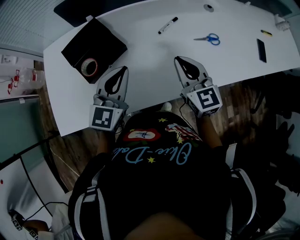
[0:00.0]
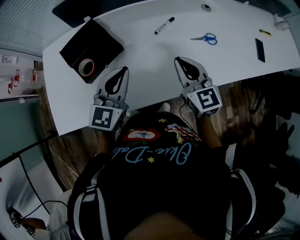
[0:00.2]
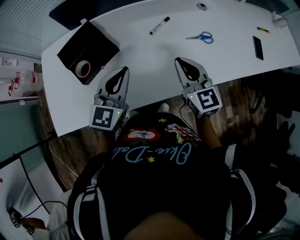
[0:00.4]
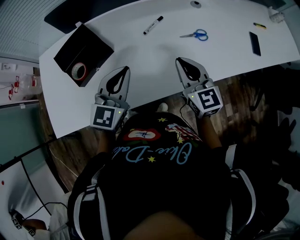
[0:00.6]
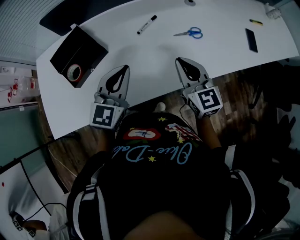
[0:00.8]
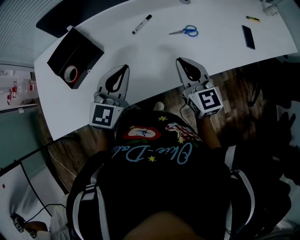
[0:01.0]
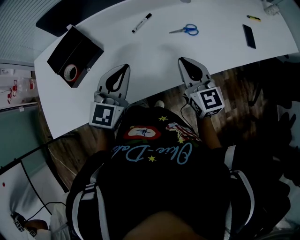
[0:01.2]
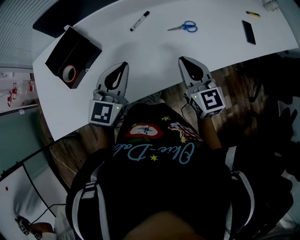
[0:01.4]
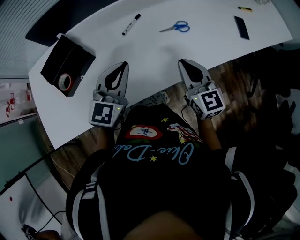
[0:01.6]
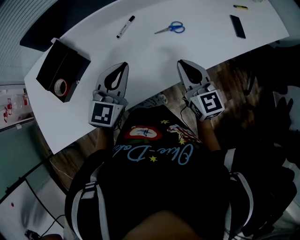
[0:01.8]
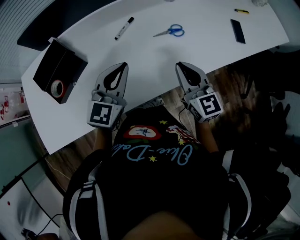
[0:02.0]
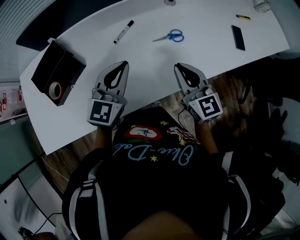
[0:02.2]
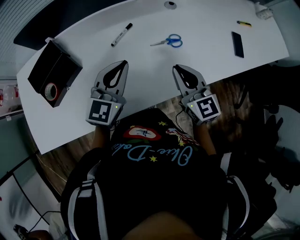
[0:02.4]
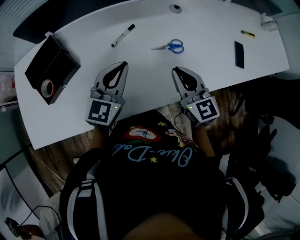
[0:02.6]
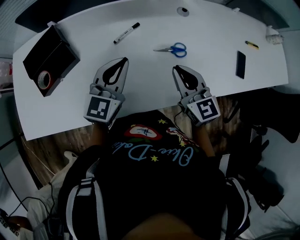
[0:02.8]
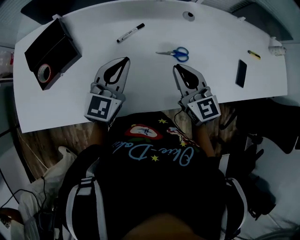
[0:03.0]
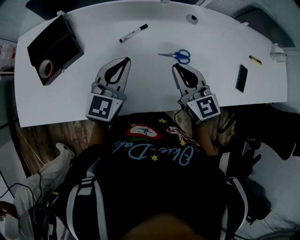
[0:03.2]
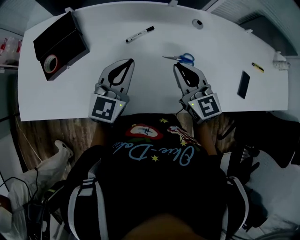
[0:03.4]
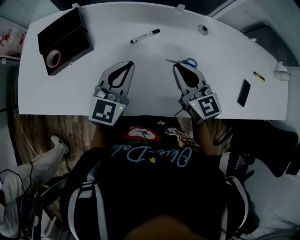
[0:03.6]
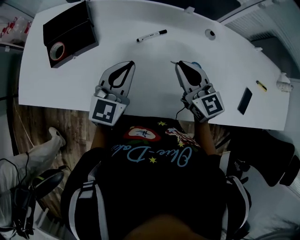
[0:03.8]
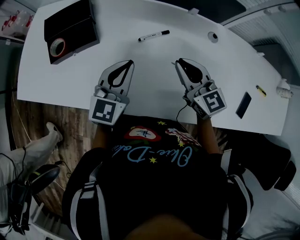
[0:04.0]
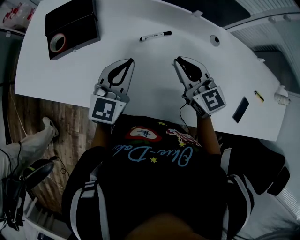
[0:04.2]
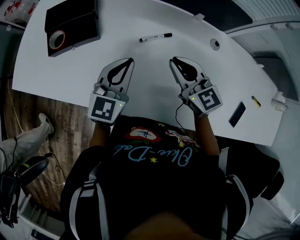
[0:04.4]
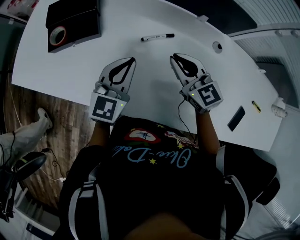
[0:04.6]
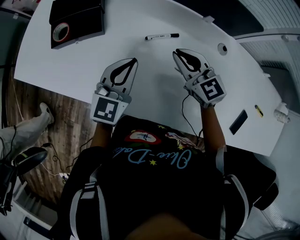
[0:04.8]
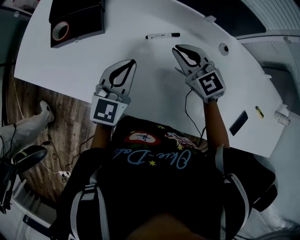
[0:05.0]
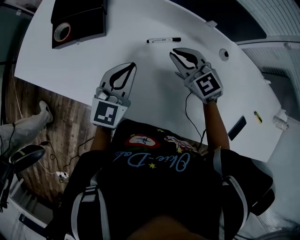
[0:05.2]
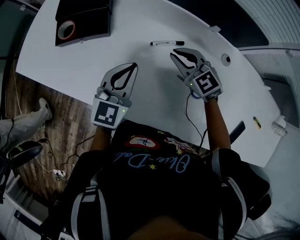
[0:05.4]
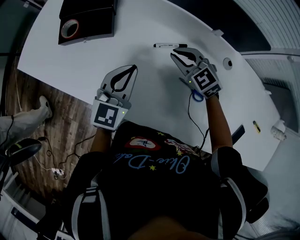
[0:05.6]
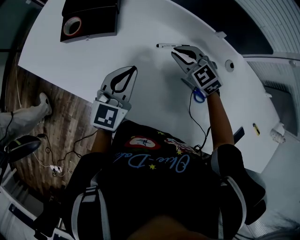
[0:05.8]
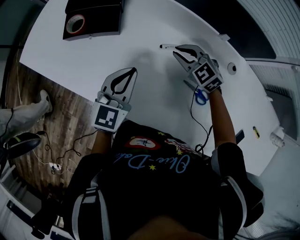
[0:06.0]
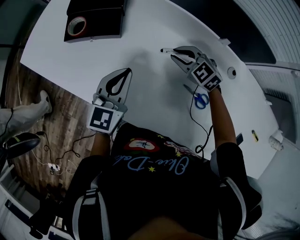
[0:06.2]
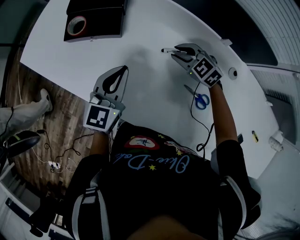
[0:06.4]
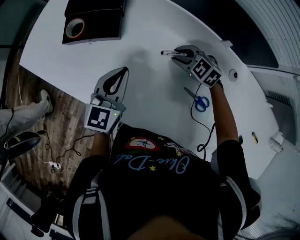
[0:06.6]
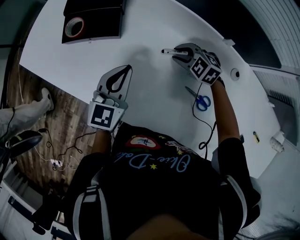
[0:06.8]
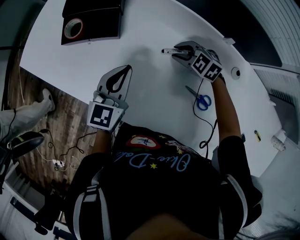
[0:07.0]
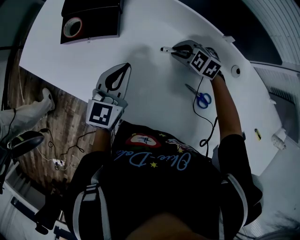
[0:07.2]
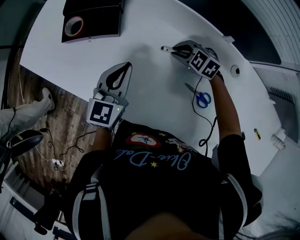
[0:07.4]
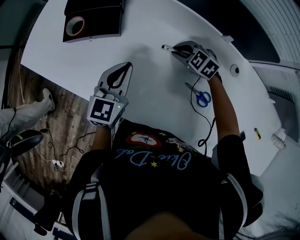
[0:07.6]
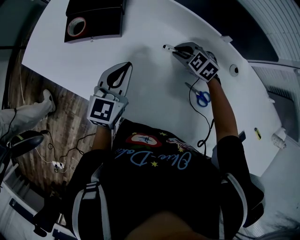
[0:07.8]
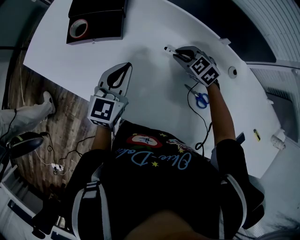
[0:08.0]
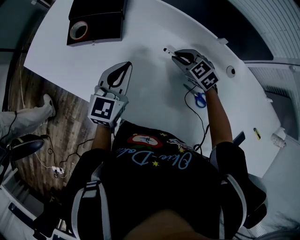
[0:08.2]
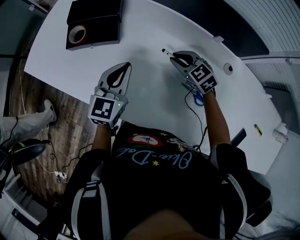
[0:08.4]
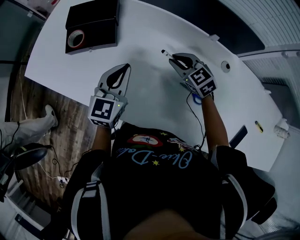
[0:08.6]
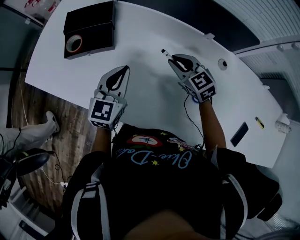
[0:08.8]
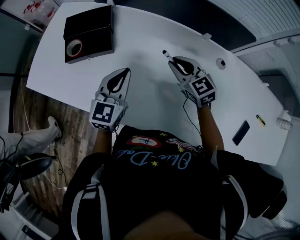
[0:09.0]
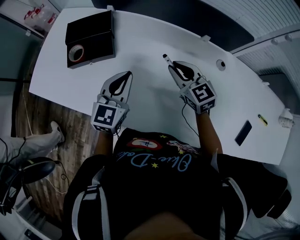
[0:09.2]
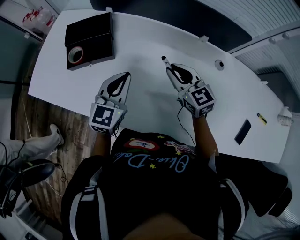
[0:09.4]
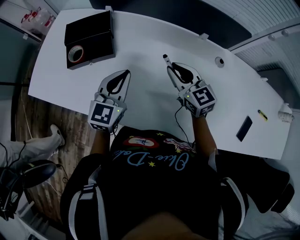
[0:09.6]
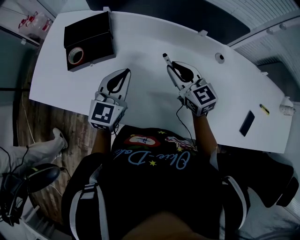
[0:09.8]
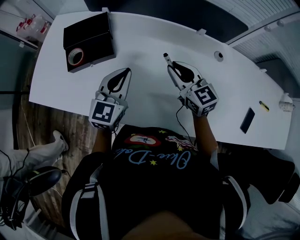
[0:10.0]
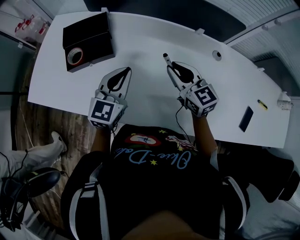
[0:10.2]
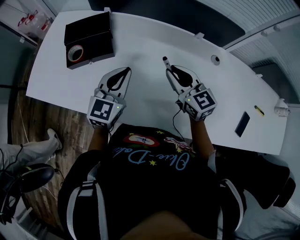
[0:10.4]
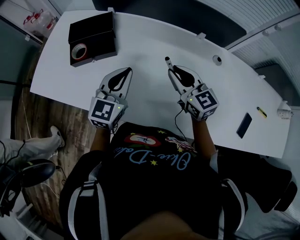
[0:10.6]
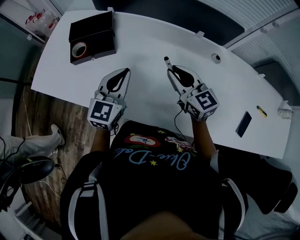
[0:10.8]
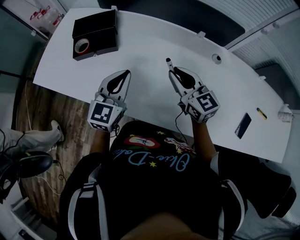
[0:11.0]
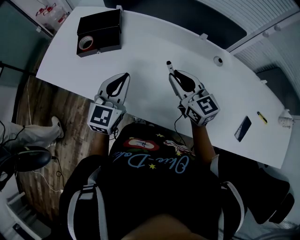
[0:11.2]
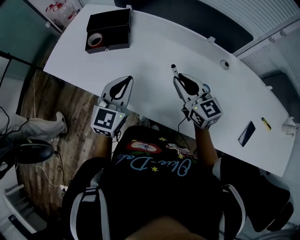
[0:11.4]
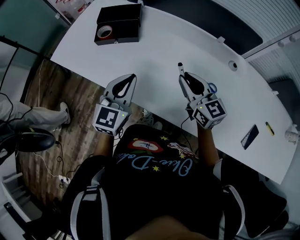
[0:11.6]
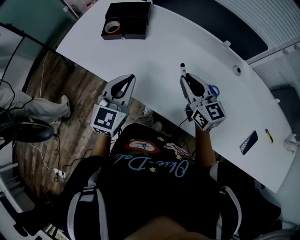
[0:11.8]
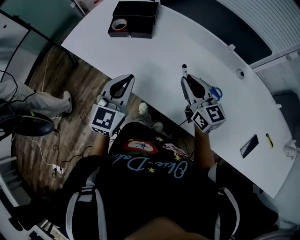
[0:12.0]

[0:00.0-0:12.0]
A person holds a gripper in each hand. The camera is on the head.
0:00.0 to 0:01.6: Both grippers move to the right, roughly 15 cm.
0:01.6 to 0:03.0: Both grippers travel together forward, some 10 cm. The right gripper rotates approximately 20 degrees.
0:03.0 to 0:04.4: The right gripper changes place by approximately 10 cm, and swivels roughly 30 degrees. The left gripper rotates about 20 degrees.
0:04.4 to 0:06.0: The right gripper is displaced downward and forward by roughly 15 cm, and changes its angle by some 40 degrees.
0:06.0 to 0:07.6: The right gripper heads downward, covering roughly 5 cm.
0:07.6 to 0:09.0: The right gripper shifts approximately 15 cm upward, and turns by roughly 40 degrees.
0:09.0 to 0:10.4: The right gripper goes roughly 10 cm backward and upward.
0:10.4 to 0:12.0: The left gripper moves backward and to the left, approximately 15 cm. The right gripper moves backward, approximately 10 cm.

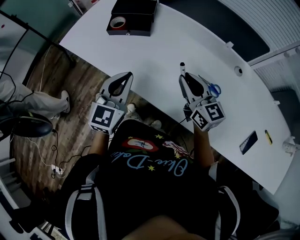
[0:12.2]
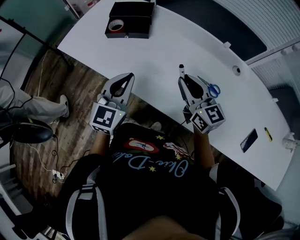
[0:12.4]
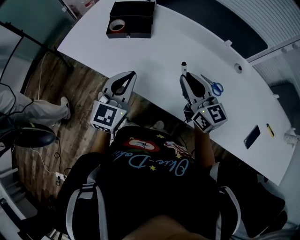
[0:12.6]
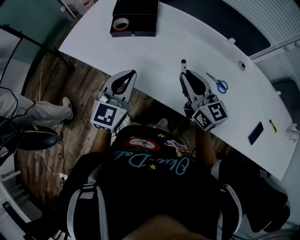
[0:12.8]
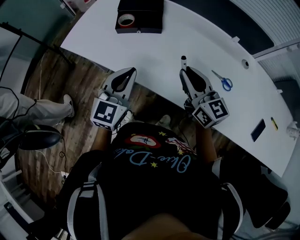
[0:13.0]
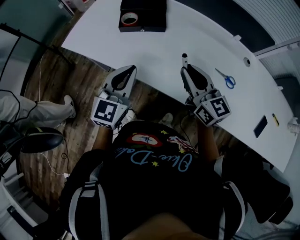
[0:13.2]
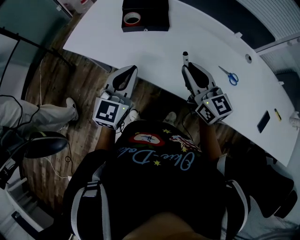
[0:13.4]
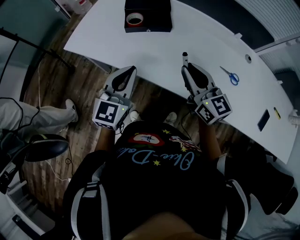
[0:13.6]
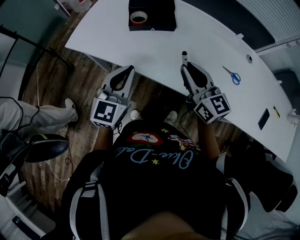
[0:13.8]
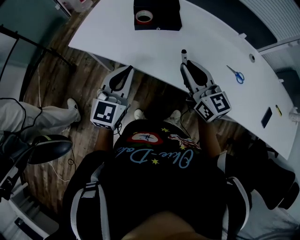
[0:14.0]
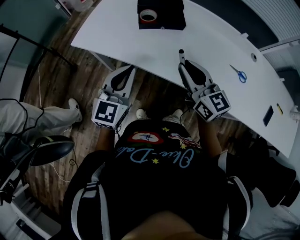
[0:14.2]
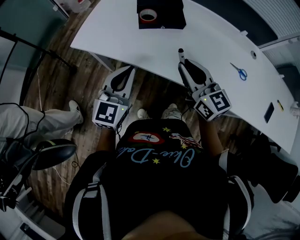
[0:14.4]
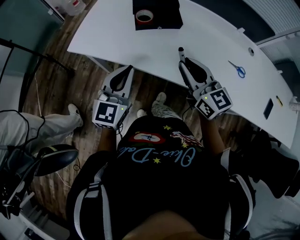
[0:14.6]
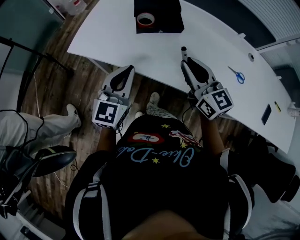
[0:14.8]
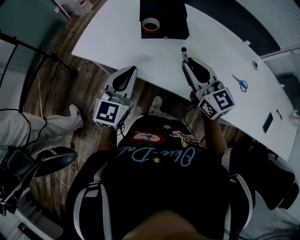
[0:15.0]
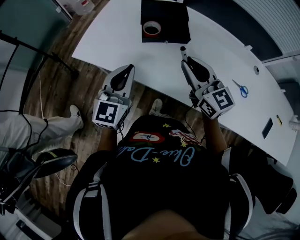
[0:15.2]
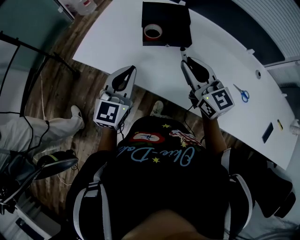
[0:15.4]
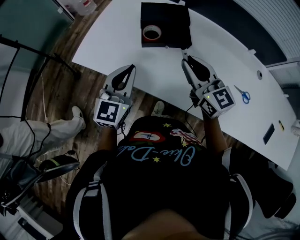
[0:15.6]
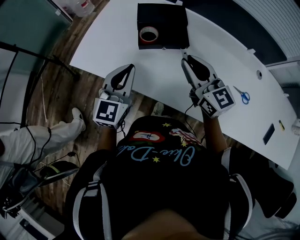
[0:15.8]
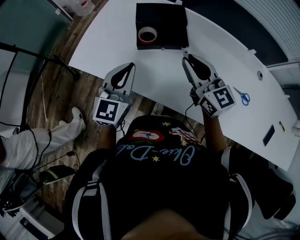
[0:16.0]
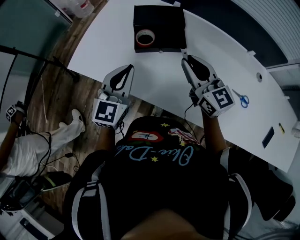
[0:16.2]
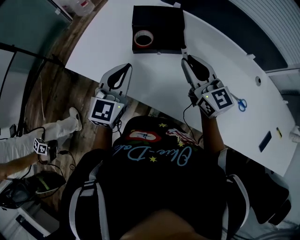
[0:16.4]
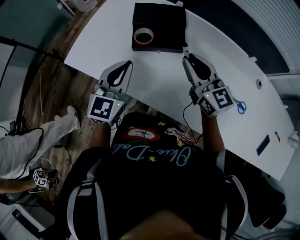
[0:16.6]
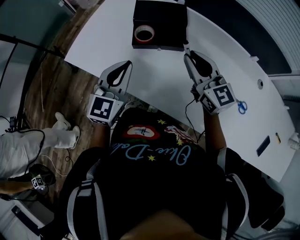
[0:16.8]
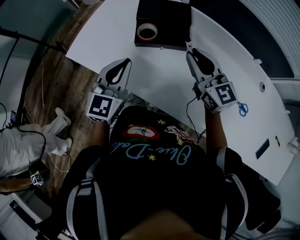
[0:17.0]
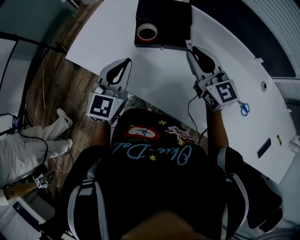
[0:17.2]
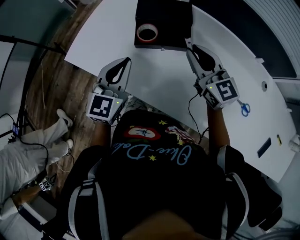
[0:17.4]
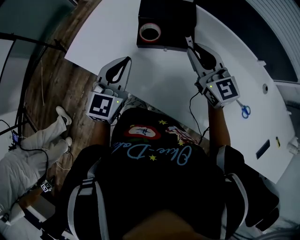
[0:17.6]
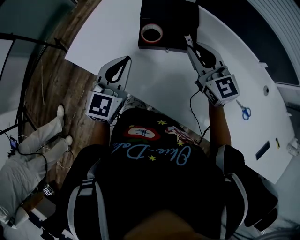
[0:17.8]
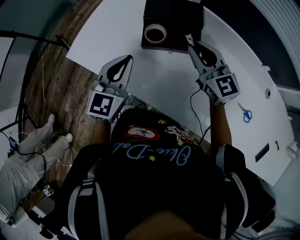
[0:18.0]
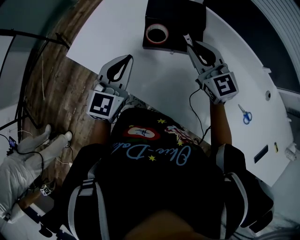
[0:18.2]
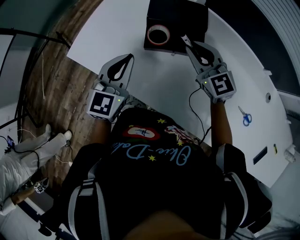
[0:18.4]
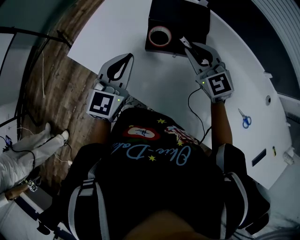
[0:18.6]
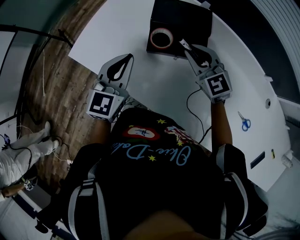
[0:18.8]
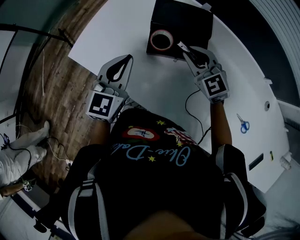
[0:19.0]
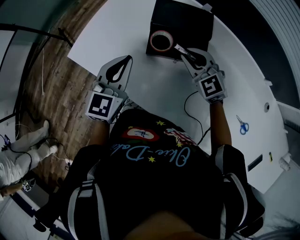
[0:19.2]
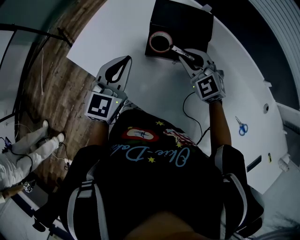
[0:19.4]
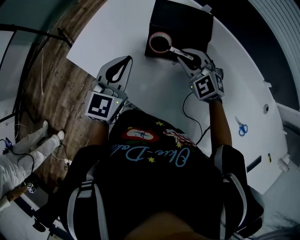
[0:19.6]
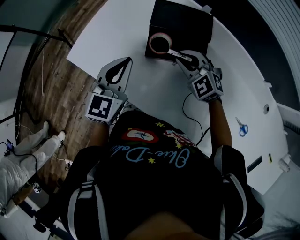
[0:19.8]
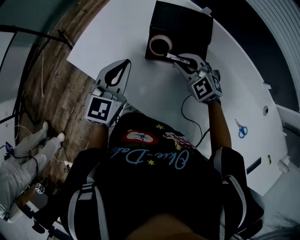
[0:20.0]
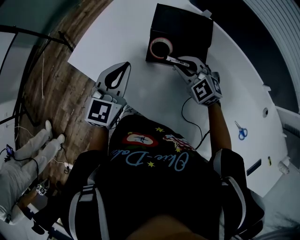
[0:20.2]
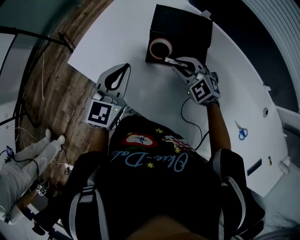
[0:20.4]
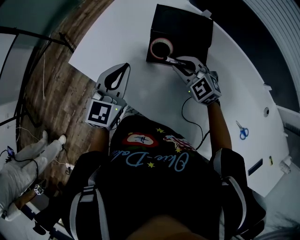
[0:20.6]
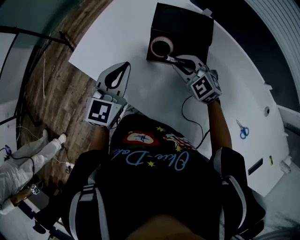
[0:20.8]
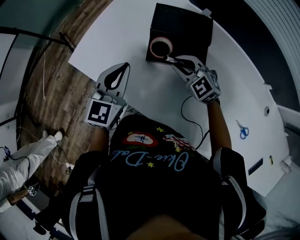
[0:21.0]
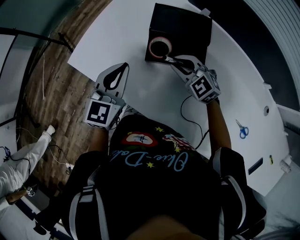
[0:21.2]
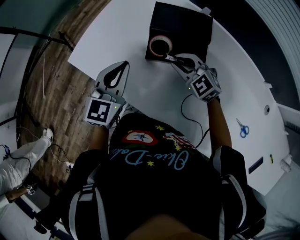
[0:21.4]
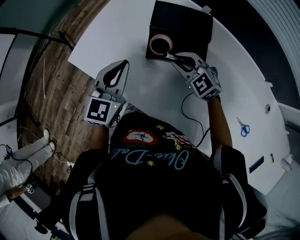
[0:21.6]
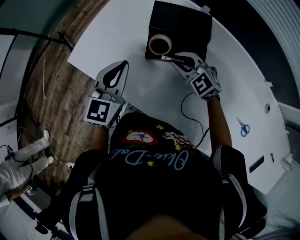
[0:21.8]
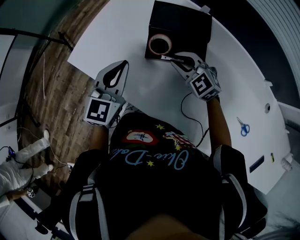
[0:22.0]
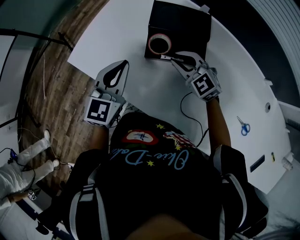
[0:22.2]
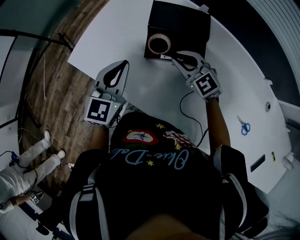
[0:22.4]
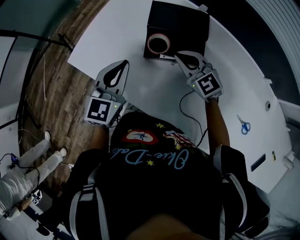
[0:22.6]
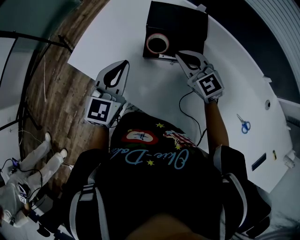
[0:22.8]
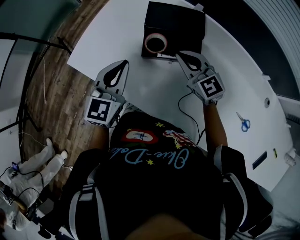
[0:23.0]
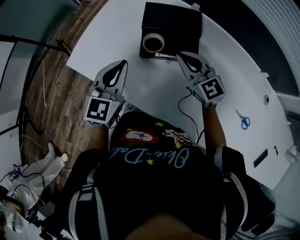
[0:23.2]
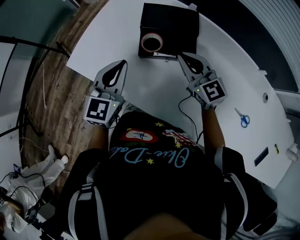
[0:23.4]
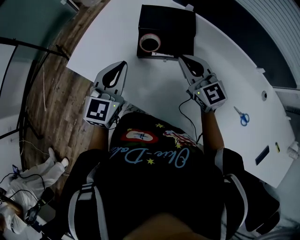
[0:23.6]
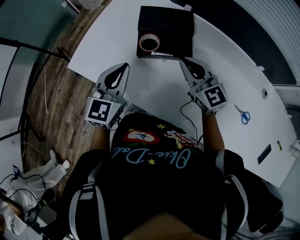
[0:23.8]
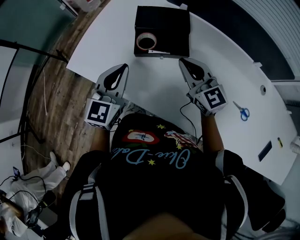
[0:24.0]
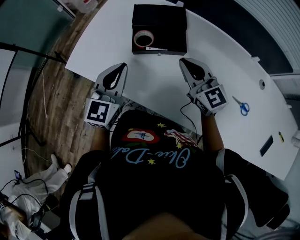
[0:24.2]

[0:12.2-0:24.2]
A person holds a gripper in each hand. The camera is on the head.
0:12.2 to 0:13.8: Both grippers travel together to the left, some 15 cm.
0:13.8 to 0:15.2: The two grippers go roughly 10 cm forward and to the left.
0:15.2 to 0:16.6: Both grippers travel together forward and to the right, some 10 cm.
0:16.6 to 0:18.2: The grippers stay close to where they were, moving slightly.
0:18.2 to 0:19.8: The right gripper travels downward by roughly 10 cm, and changes its angle by approximately 40 degrees.
0:19.8 to 0:21.2: The grippers stay close to where they were, moving slightly.
0:21.2 to 0:22.6: The grippers move only a little.
0:22.6 to 0:24.2: The right gripper heads backward, upward and to the right, covering some 15 cm, and rotates some 20 degrees; the left gripper goes about 5 cm backward.
